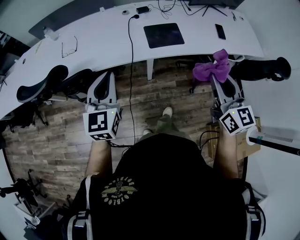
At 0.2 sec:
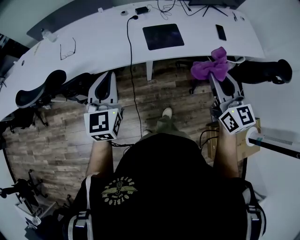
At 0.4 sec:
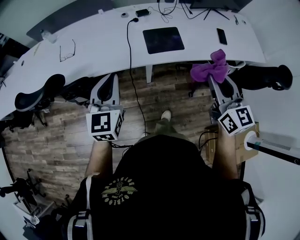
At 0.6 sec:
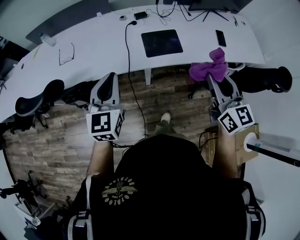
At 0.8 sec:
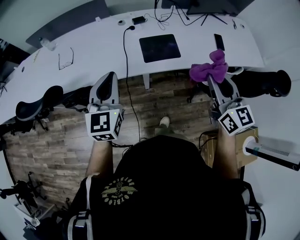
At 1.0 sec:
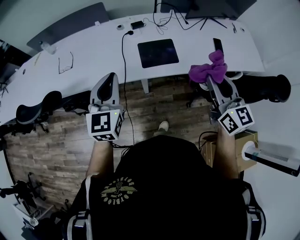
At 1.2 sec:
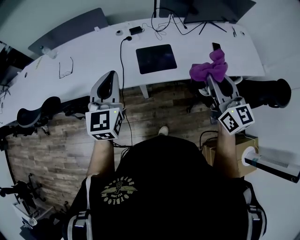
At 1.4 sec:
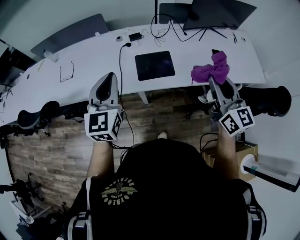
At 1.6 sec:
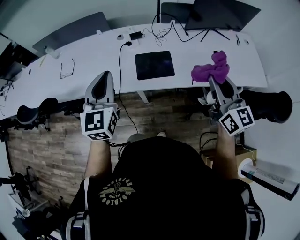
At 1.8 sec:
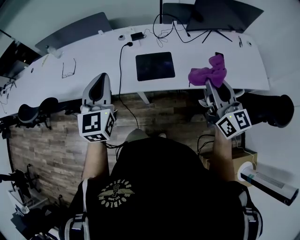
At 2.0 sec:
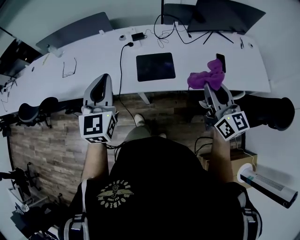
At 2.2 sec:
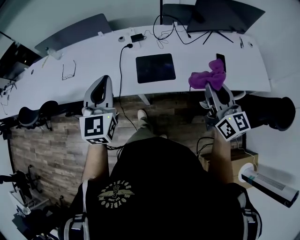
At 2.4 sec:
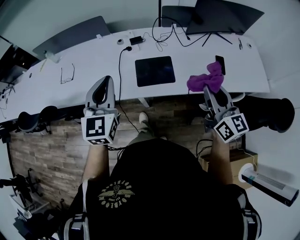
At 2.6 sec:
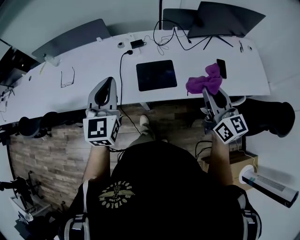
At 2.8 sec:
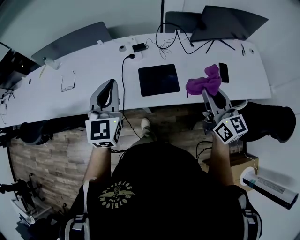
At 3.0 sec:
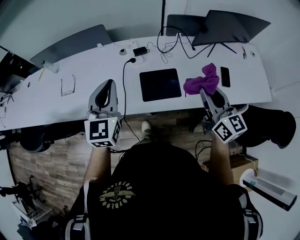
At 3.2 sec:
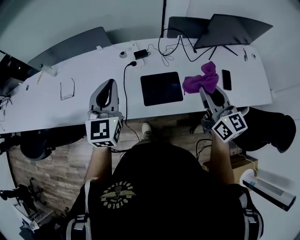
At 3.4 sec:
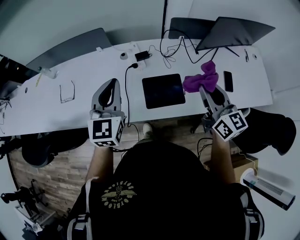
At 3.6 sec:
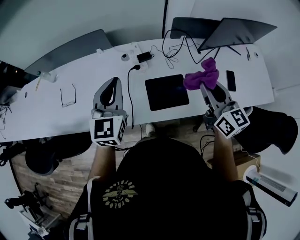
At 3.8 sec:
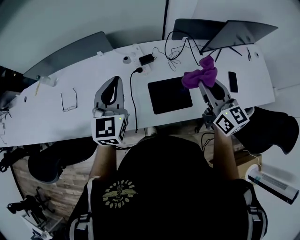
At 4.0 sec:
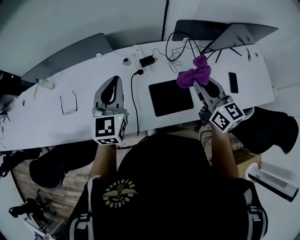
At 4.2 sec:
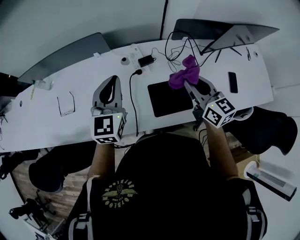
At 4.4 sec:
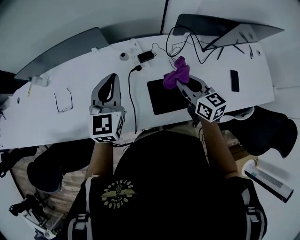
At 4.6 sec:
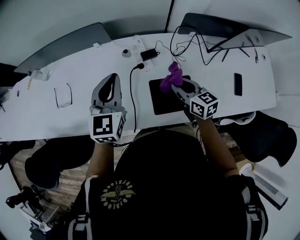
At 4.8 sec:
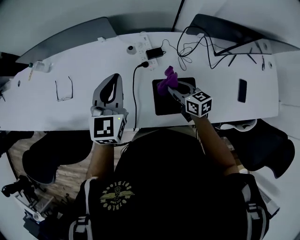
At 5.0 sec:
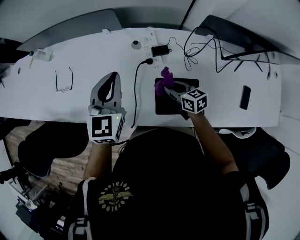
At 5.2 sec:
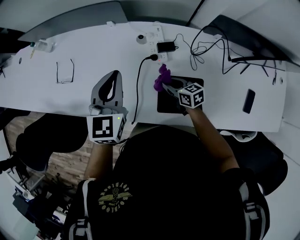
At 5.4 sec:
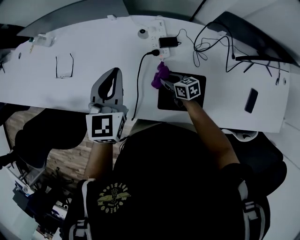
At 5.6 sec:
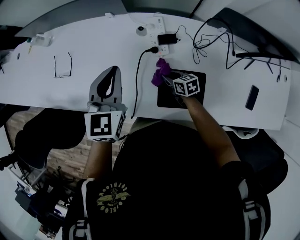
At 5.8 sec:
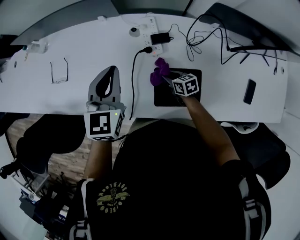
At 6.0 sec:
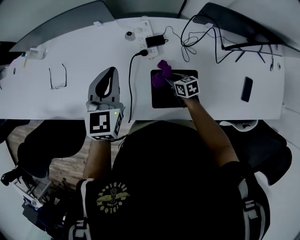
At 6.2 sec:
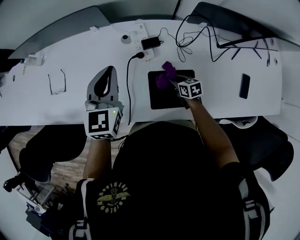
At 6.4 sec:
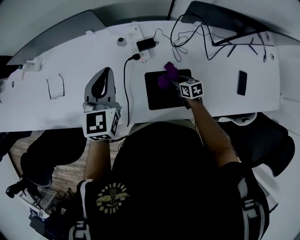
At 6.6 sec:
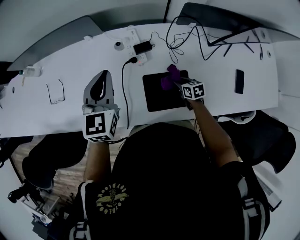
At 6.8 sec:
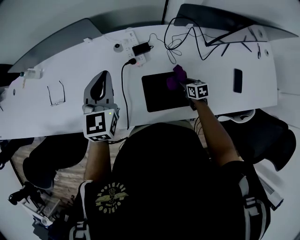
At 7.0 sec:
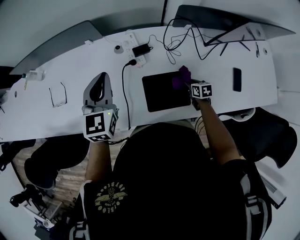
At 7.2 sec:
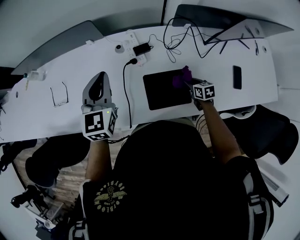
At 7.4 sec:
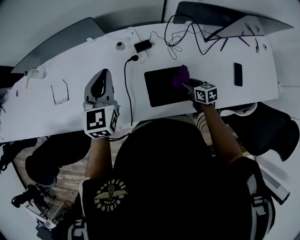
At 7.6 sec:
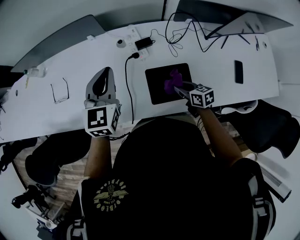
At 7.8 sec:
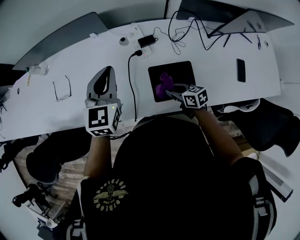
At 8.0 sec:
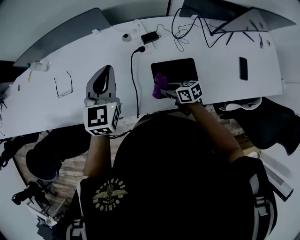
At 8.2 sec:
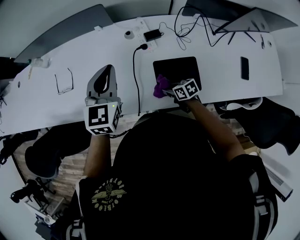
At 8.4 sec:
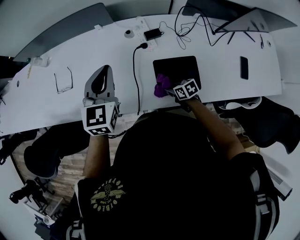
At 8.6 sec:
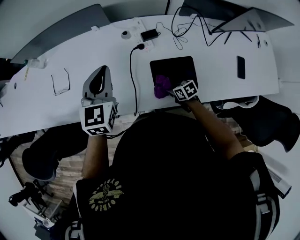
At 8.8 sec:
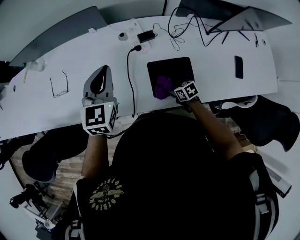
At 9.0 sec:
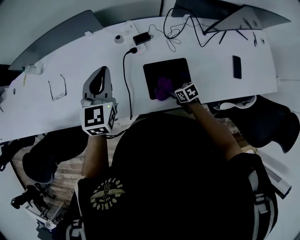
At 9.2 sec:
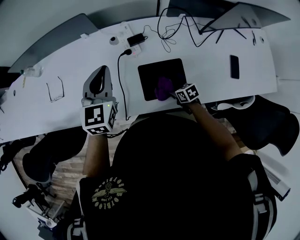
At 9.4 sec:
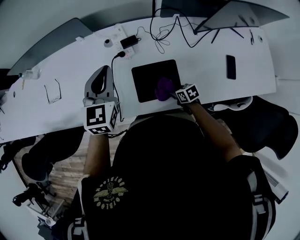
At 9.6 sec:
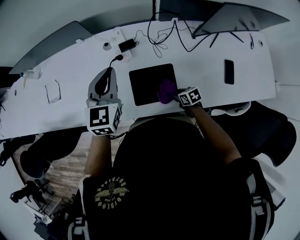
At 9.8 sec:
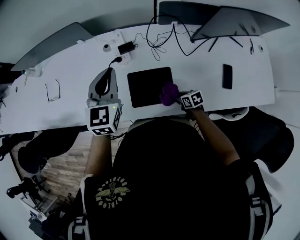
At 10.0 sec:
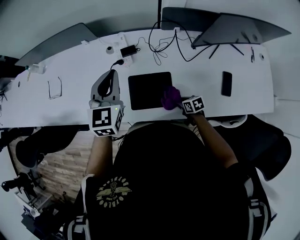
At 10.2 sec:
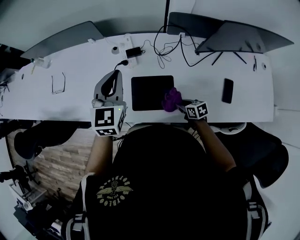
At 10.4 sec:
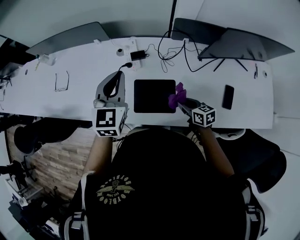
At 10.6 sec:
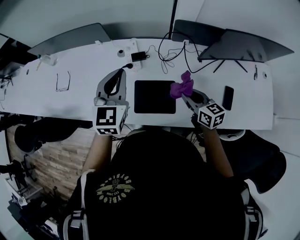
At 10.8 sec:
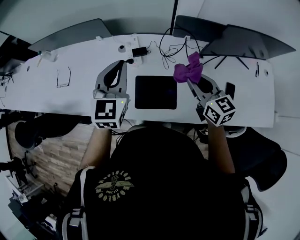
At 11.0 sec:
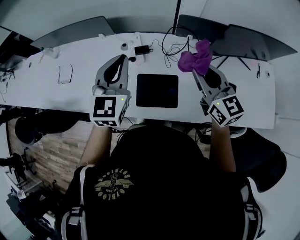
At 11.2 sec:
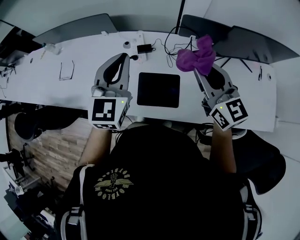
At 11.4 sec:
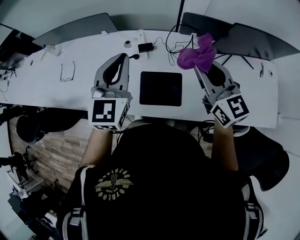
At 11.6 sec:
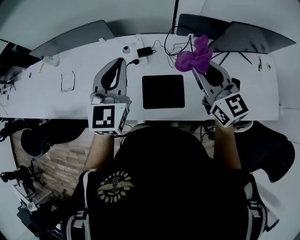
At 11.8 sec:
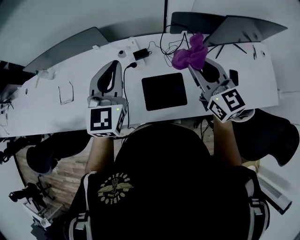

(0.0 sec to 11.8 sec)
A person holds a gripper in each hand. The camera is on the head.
0.0 sec - 1.4 sec: The grippers both shift forward and to the right by about 20 cm.
1.4 sec - 3.0 sec: The two grippers go about 10 cm forward.
3.0 sec - 4.4 sec: The right gripper shifts approximately 25 cm forward, to the left and downward, while the left gripper goes approximately 20 cm forward.
4.4 sec - 6.0 sec: The right gripper moves downward, approximately 30 cm, and swivels about 40 degrees; the left gripper is displaced downward by some 5 cm.
6.0 sec - 7.4 sec: The right gripper goes some 15 cm to the right, backward and upward.
7.4 sec - 8.8 sec: The right gripper travels to the left and downward by approximately 15 cm, and rotates some 20 degrees.
8.8 sec - 10.4 sec: The left gripper shifts some 15 cm to the right and backward. The right gripper moves to the right and upward, some 20 cm, and changes its angle by some 20 degrees.
10.4 sec - 11.8 sec: The left gripper is displaced upward by roughly 5 cm. The right gripper is displaced upward by some 30 cm, and rotates some 40 degrees.

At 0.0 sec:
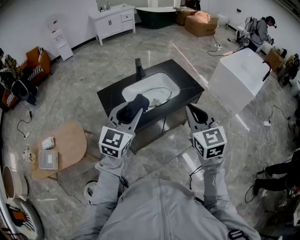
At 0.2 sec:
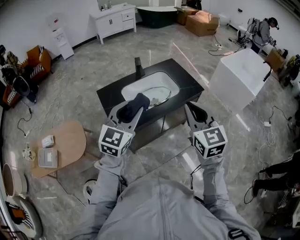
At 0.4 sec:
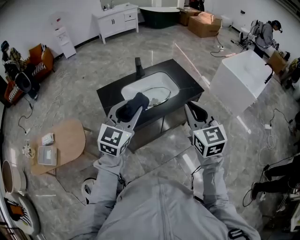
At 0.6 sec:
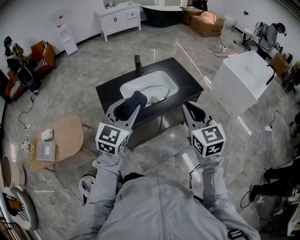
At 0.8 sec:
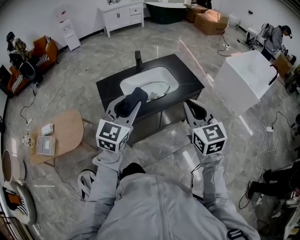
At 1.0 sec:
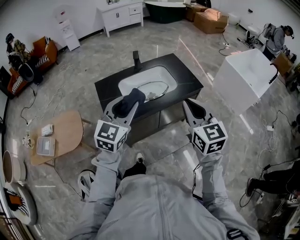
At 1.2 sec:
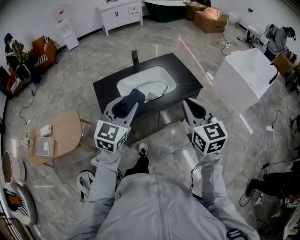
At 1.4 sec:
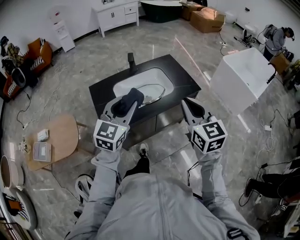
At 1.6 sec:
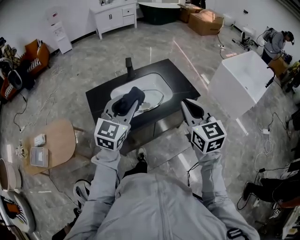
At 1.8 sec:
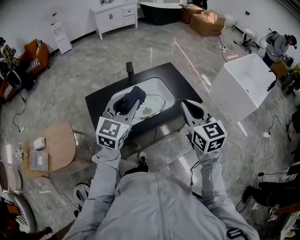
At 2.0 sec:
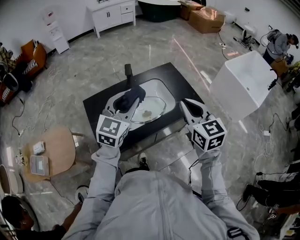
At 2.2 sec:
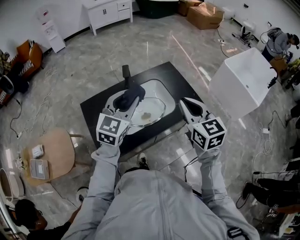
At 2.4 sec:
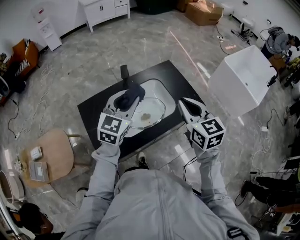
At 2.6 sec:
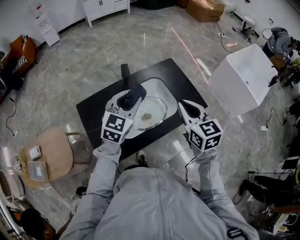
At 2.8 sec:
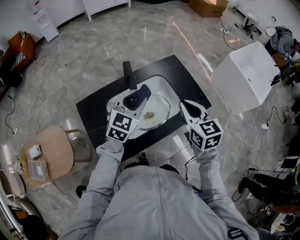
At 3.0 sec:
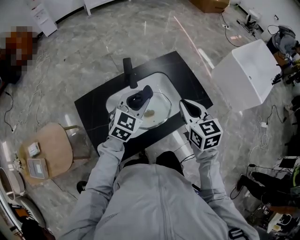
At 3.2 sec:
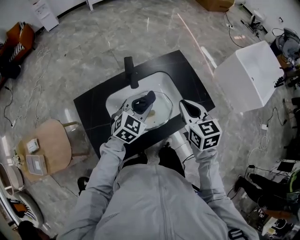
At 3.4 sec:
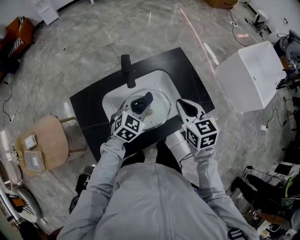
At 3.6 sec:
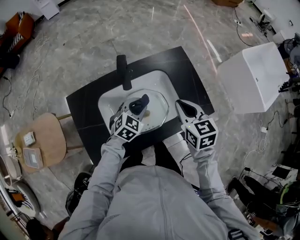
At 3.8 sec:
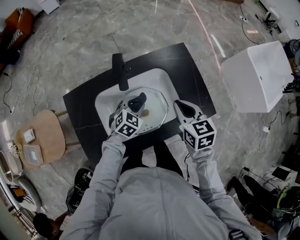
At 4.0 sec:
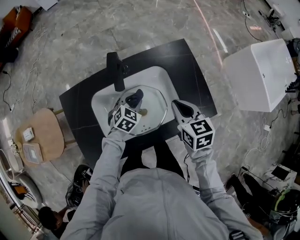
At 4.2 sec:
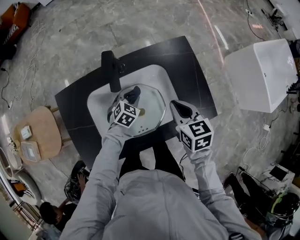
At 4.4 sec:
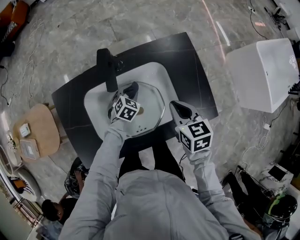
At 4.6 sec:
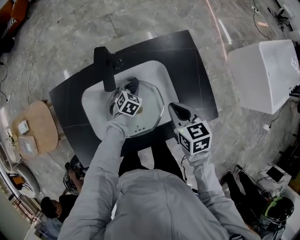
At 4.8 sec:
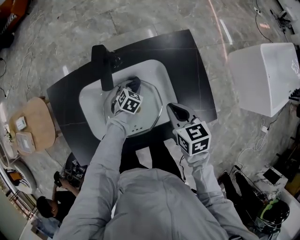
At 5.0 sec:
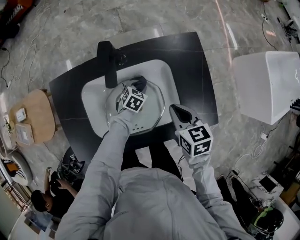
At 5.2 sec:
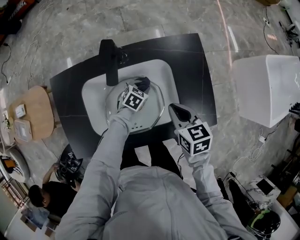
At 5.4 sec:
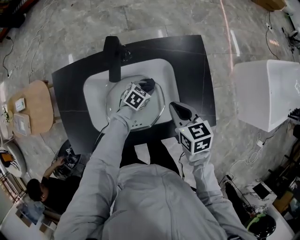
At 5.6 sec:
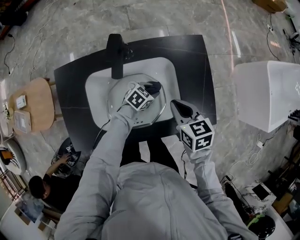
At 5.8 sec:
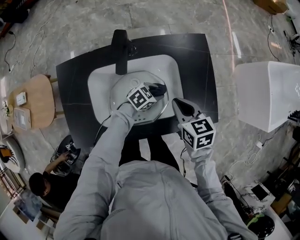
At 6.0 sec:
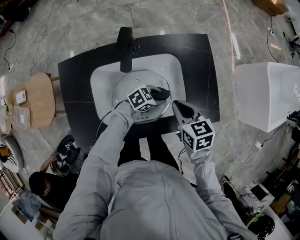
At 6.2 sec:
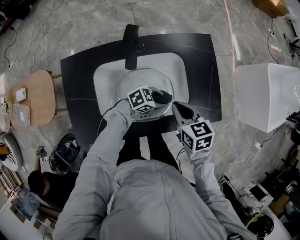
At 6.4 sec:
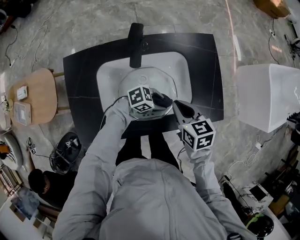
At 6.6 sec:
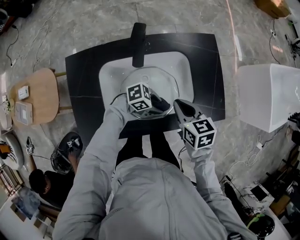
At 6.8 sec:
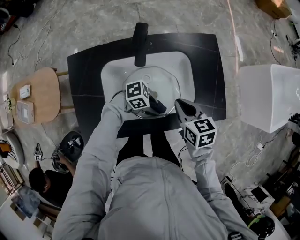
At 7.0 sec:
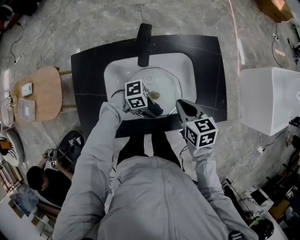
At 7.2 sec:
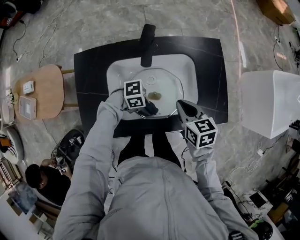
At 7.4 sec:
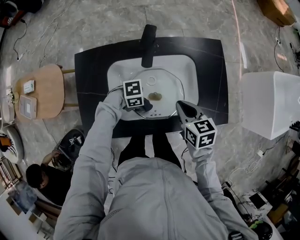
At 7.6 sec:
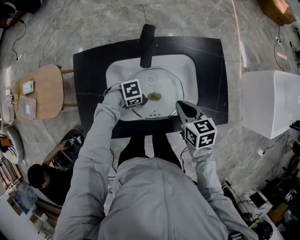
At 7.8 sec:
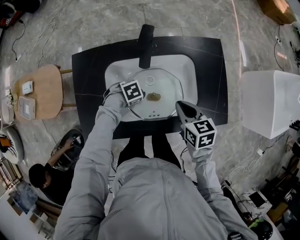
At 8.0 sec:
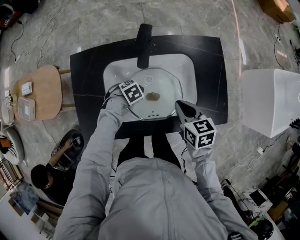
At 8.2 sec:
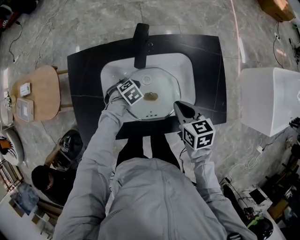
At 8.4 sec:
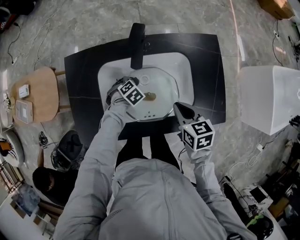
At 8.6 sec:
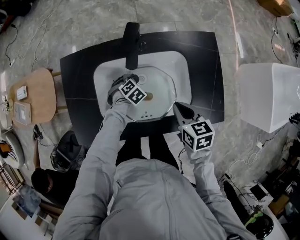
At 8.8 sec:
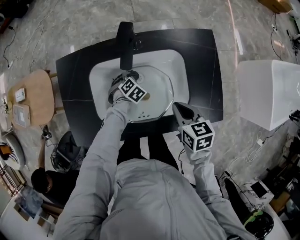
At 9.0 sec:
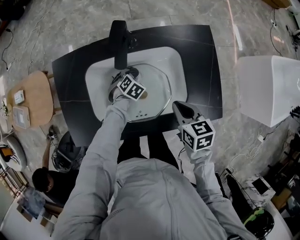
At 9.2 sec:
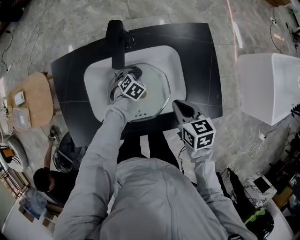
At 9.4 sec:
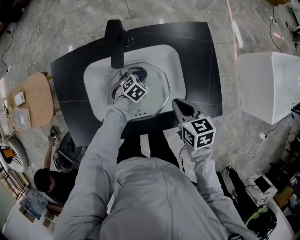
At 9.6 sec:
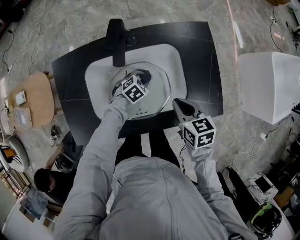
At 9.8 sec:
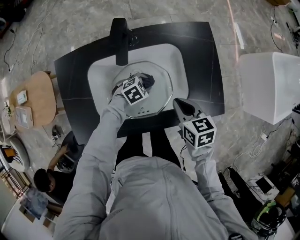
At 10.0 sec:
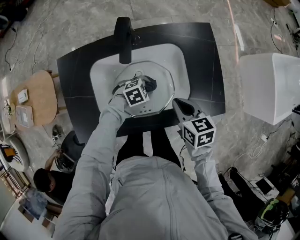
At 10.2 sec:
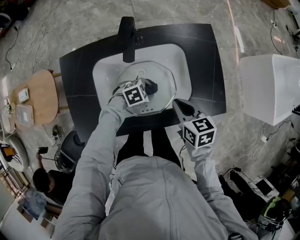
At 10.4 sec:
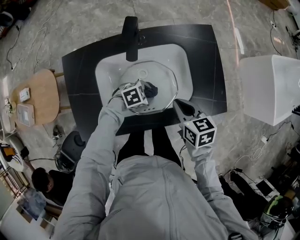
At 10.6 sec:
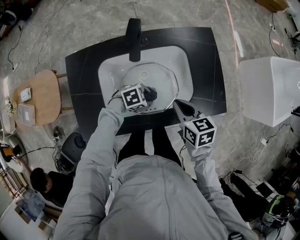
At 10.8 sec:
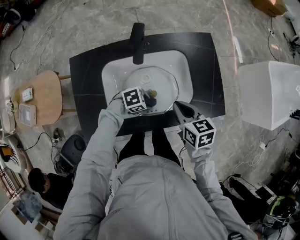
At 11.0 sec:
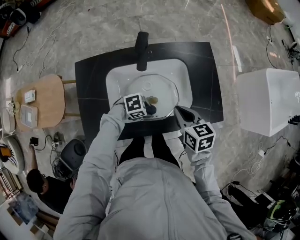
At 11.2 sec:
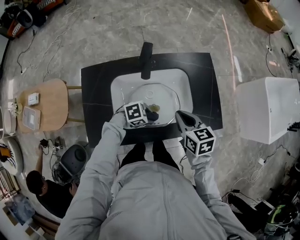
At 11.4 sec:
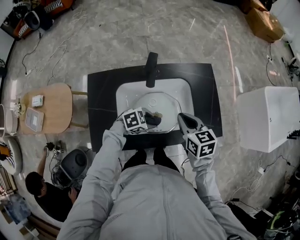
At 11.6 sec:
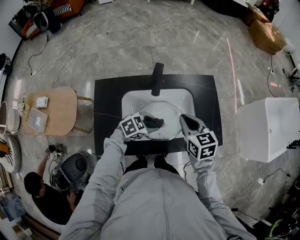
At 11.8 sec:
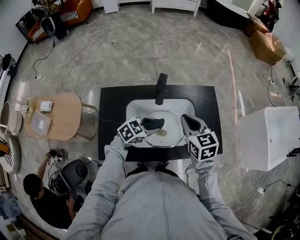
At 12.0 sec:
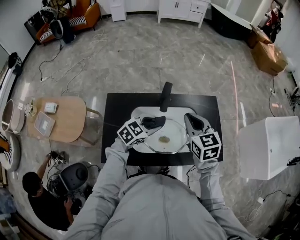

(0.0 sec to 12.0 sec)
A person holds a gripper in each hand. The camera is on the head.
0.0 sec - 1.6 sec: Both grippers travel together forward and to the right, some 10 cm.
1.6 sec - 3.0 sec: The grippers both shift forward and downward by approximately 25 cm.
3.0 sec - 4.4 sec: The right gripper shifts approximately 20 cm downward and forward, and changes its angle by approximately 20 degrees. The left gripper heads downward, covering approximately 30 cm, and tilts its fingers roughly 30 degrees downward.
4.4 sec - 6.0 sec: The left gripper changes place by roughly 15 cm, and changes its angle by about 40 degrees.
6.0 sec - 7.6 sec: The left gripper changes place by about 20 cm, and swivels approximately 40 degrees.
7.6 sec - 9.0 sec: The left gripper changes place by some 15 cm, and turns by about 50 degrees. Meanwhile the right gripper changes place by approximately 5 cm.
9.0 sec - 10.4 sec: The left gripper moves about 15 cm, and turns by some 50 degrees.
10.4 sec - 12.0 sec: The grippers both shift upward by about 20 cm. The right gripper rotates some 30 degrees. Meanwhile the left gripper rotates approximately 40 degrees.
